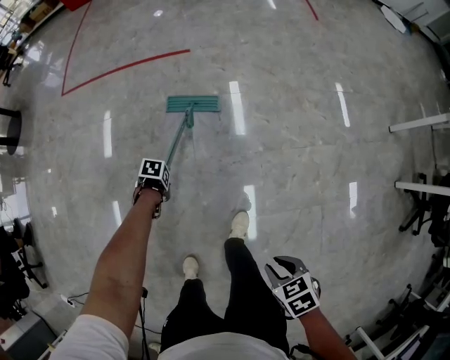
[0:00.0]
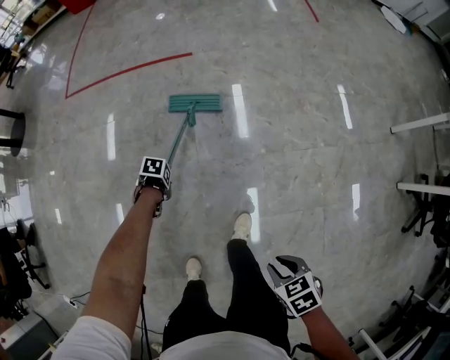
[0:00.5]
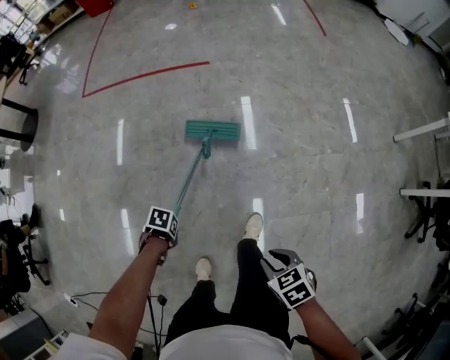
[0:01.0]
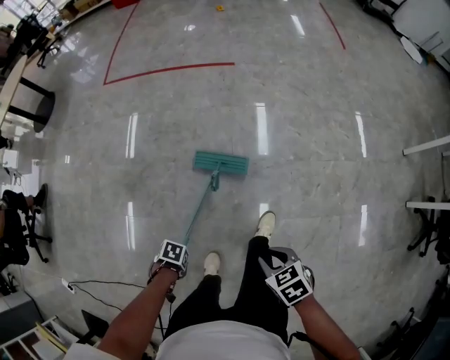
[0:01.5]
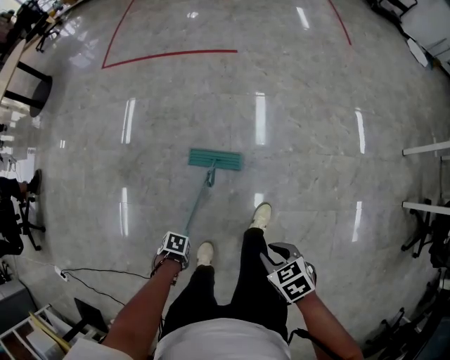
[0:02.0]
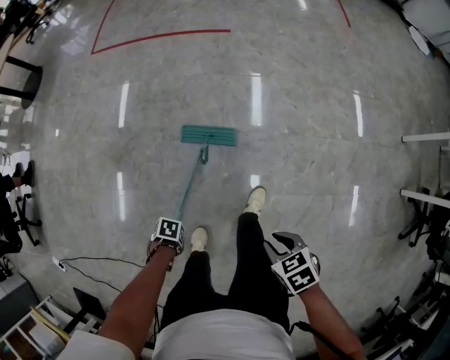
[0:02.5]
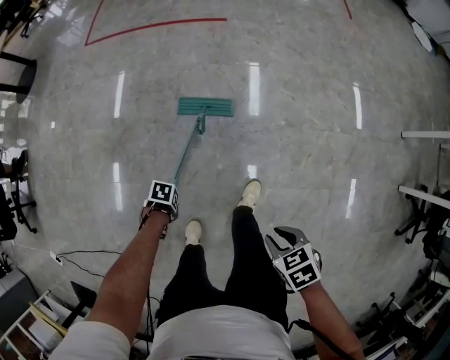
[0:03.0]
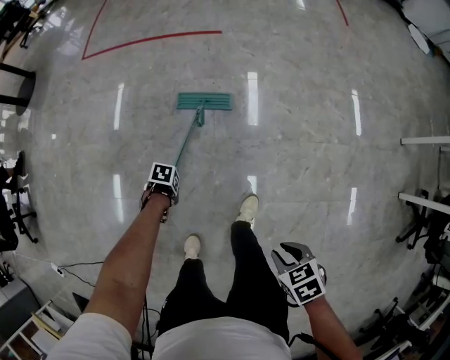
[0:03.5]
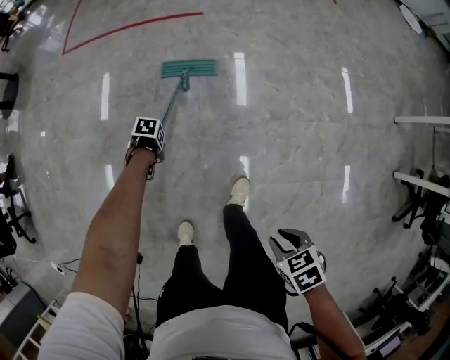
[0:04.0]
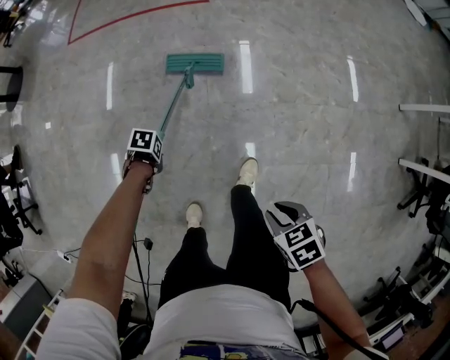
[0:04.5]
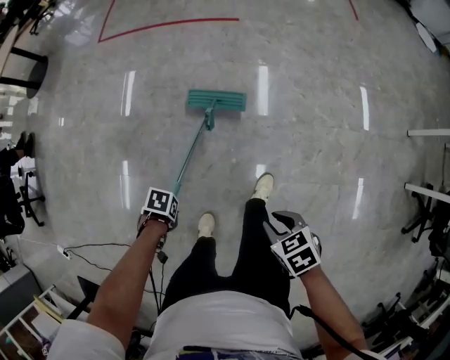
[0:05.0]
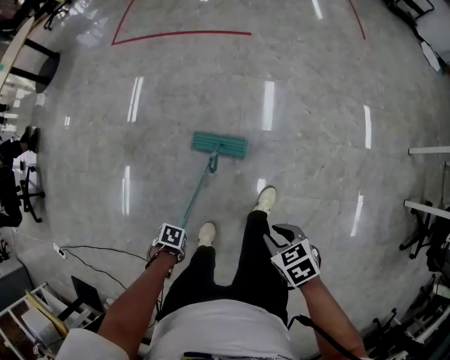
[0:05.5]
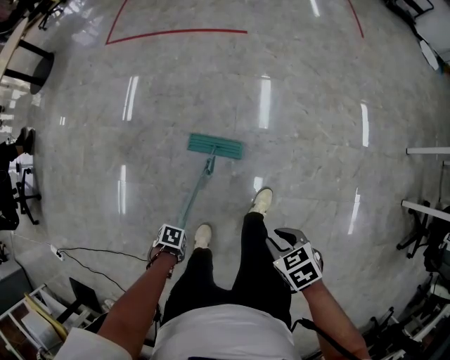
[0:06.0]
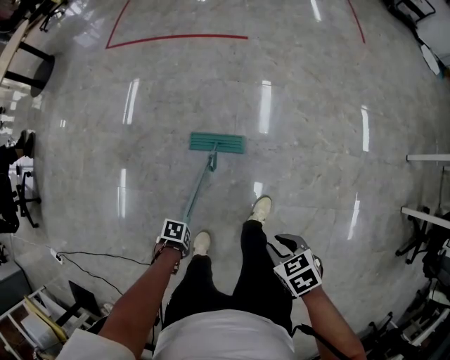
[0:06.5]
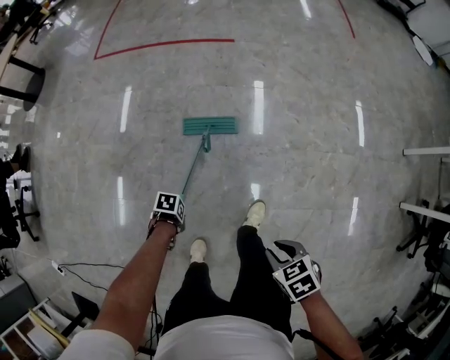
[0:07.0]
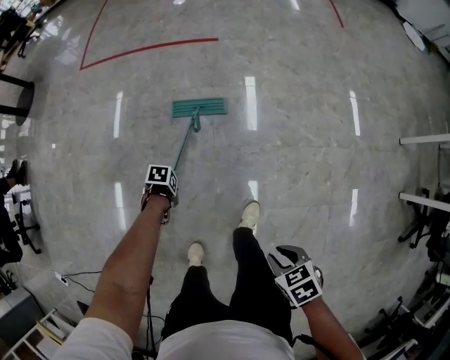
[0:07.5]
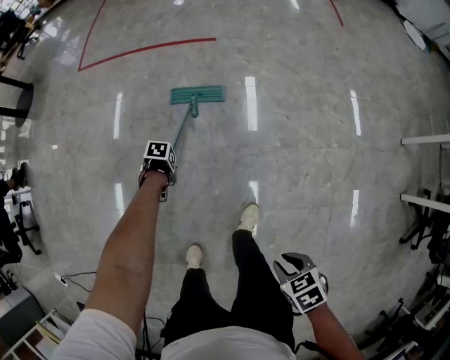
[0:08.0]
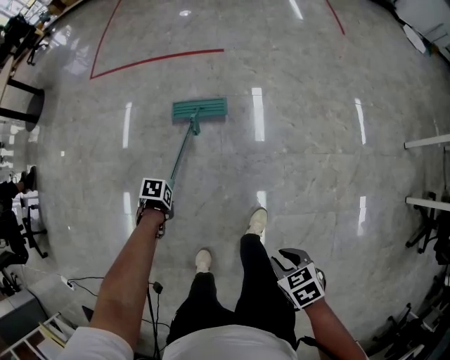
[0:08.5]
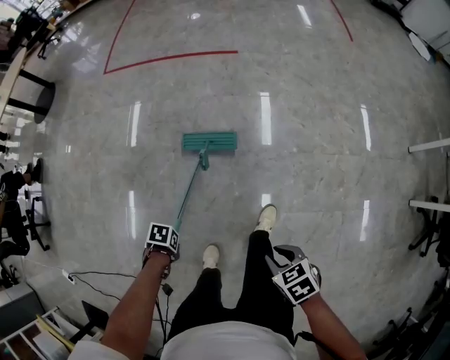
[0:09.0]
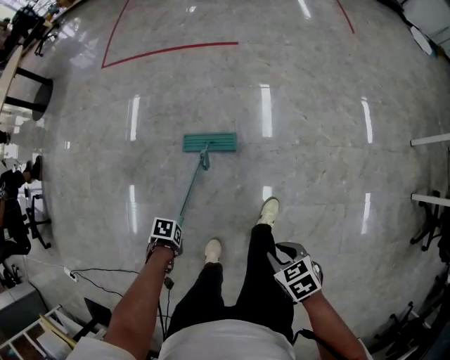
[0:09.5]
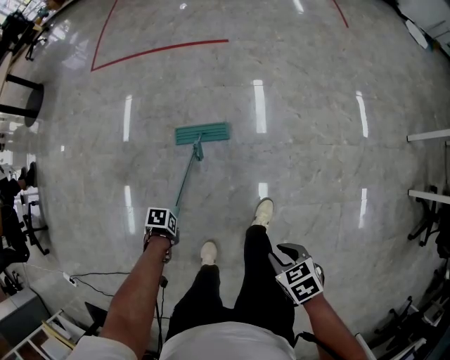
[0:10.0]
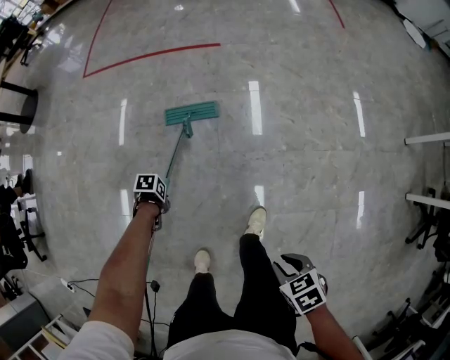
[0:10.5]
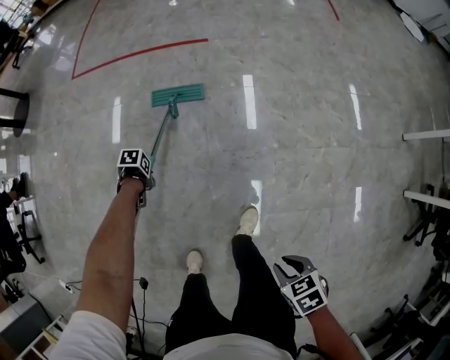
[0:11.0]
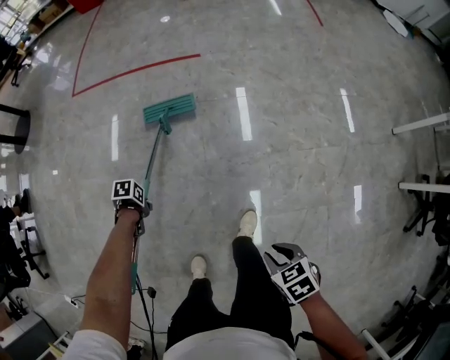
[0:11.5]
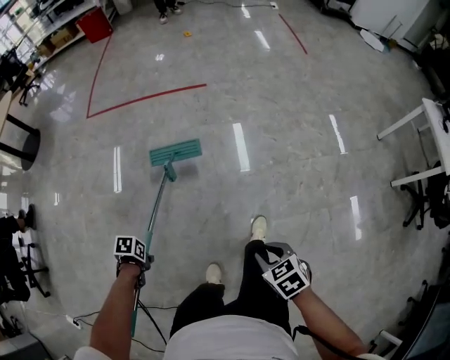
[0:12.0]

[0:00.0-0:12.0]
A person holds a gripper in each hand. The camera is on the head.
0:00.0 to 0:02.0: The right gripper moves some 10 cm.
0:02.0 to 0:04.0: The right gripper changes place by approximately 10 cm.
0:04.0 to 0:06.0: The right gripper ends up some 10 cm from where it was.
0:06.0 to 0:08.0: The right gripper changes place by approximately 10 cm.
0:08.0 to 0:10.0: The right gripper ends up some 10 cm from where it was.
0:10.0 to 0:12.0: The right gripper changes place by roughly 5 cm.

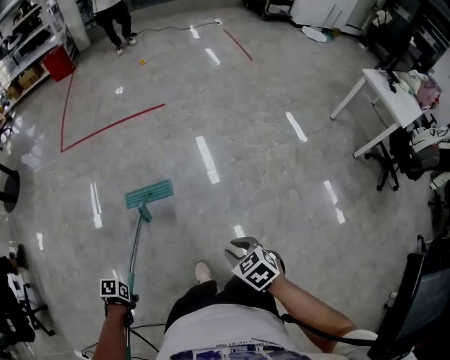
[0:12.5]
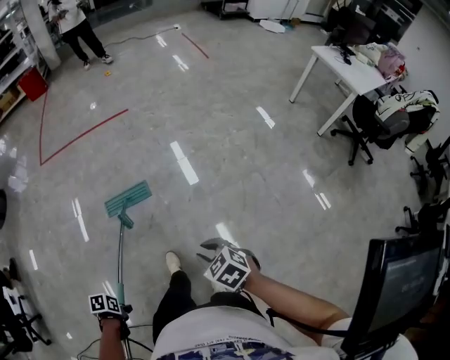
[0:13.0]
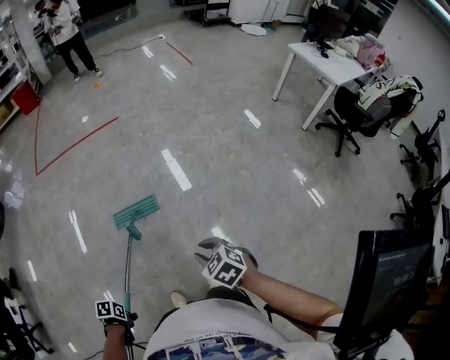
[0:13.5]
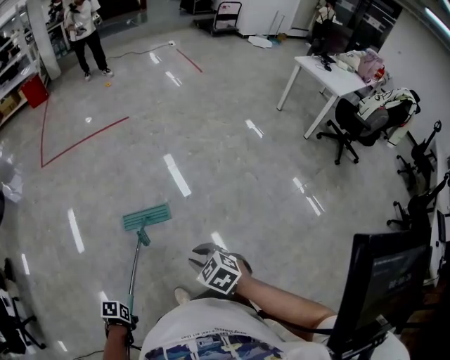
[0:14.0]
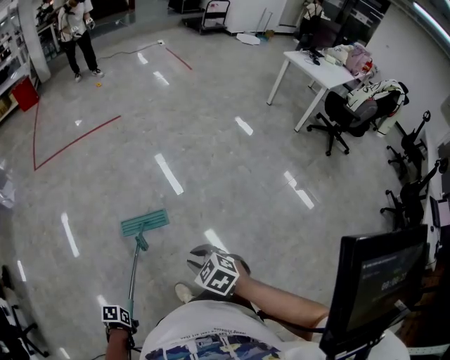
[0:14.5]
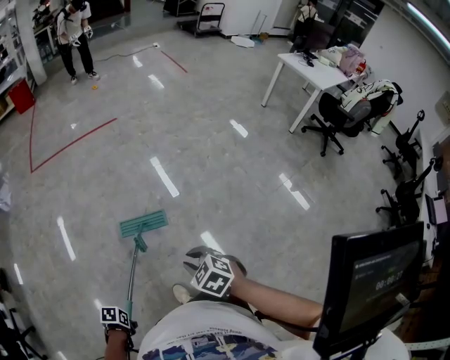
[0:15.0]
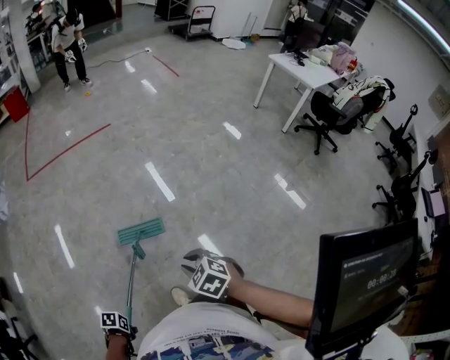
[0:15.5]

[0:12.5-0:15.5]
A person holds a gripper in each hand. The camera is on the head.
0:12.5 to 0:14.0: The right gripper ends up about 20 cm from where it was.
0:14.0 to 0:15.5: The right gripper ends up roughly 5 cm from where it was.

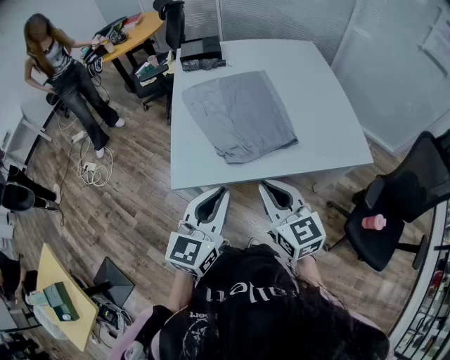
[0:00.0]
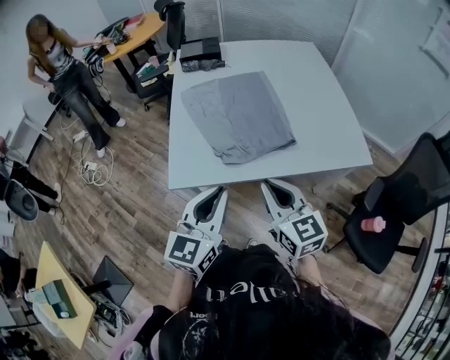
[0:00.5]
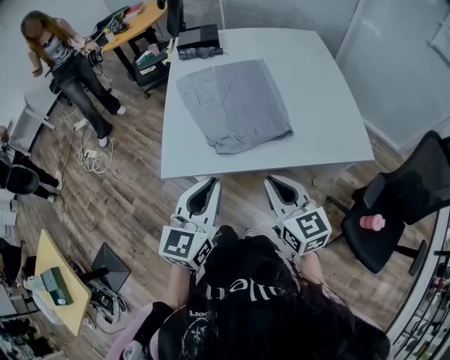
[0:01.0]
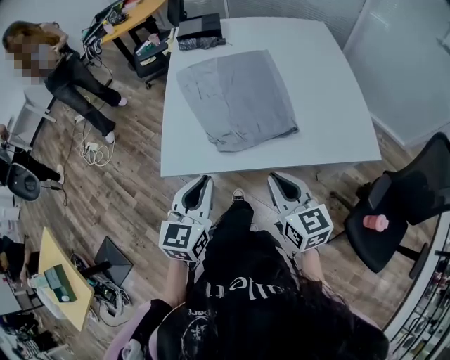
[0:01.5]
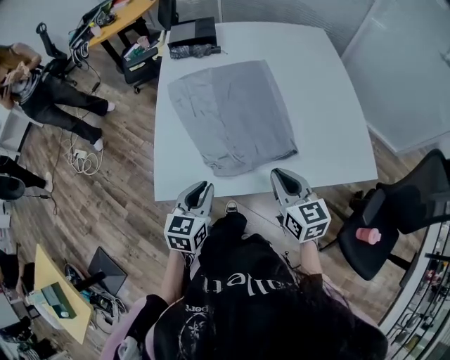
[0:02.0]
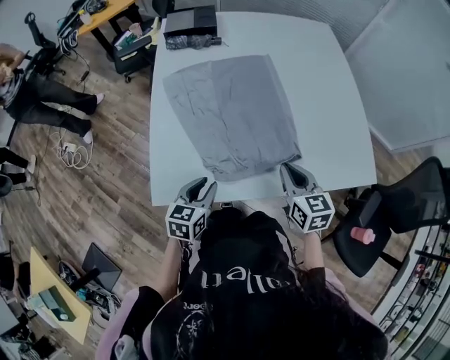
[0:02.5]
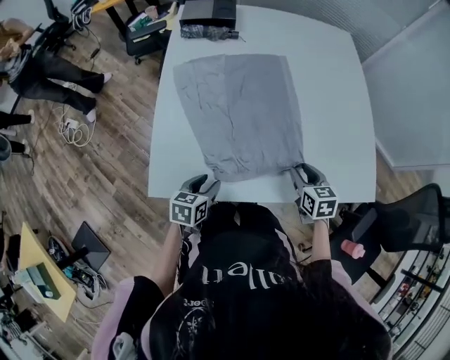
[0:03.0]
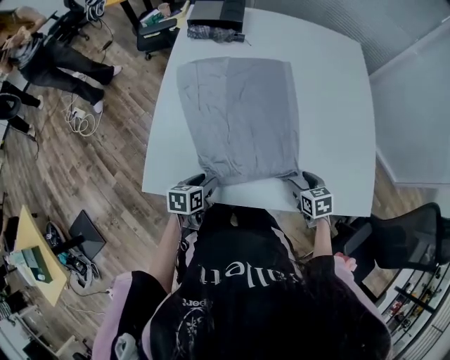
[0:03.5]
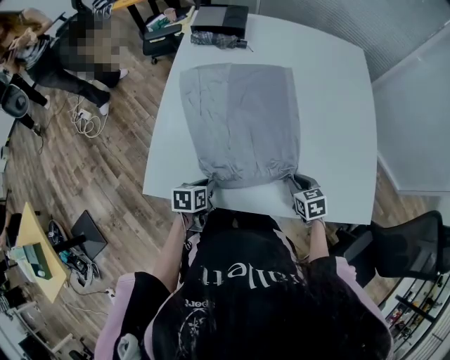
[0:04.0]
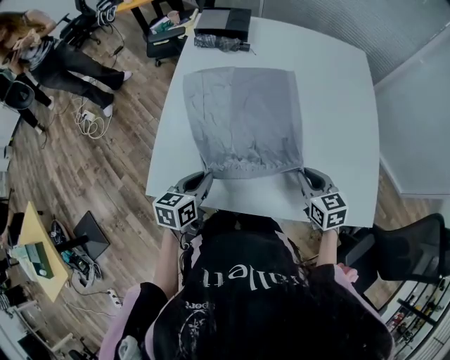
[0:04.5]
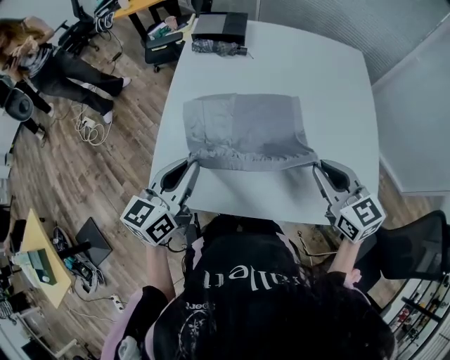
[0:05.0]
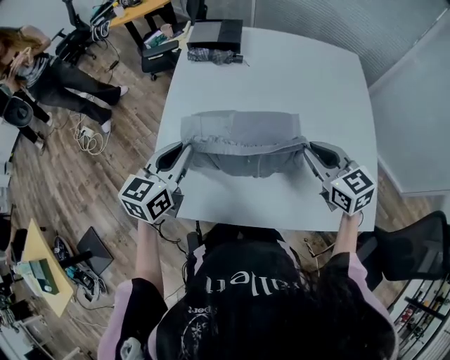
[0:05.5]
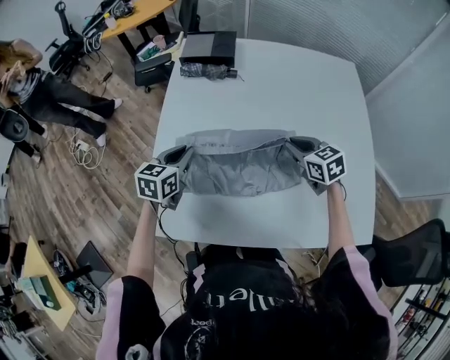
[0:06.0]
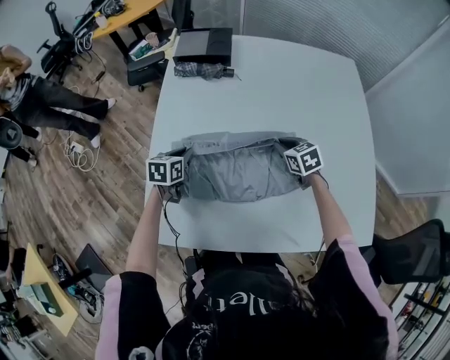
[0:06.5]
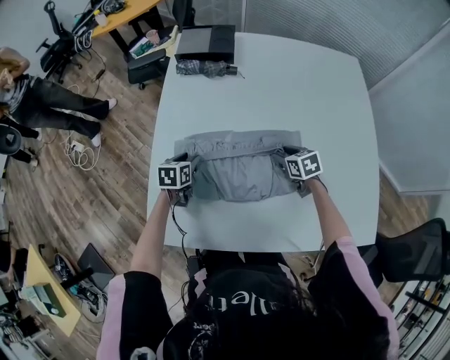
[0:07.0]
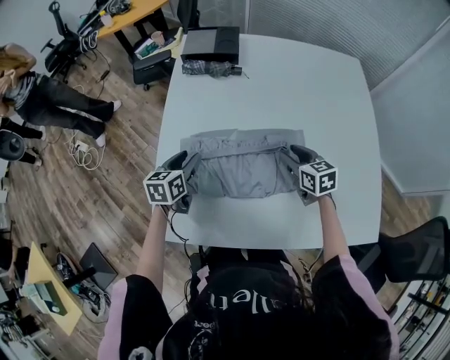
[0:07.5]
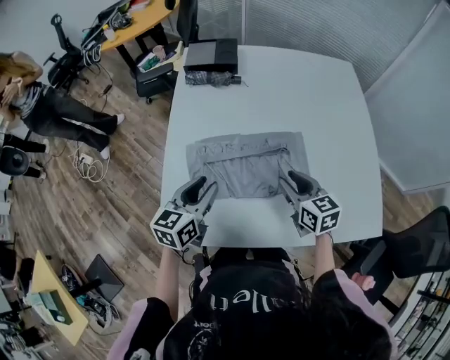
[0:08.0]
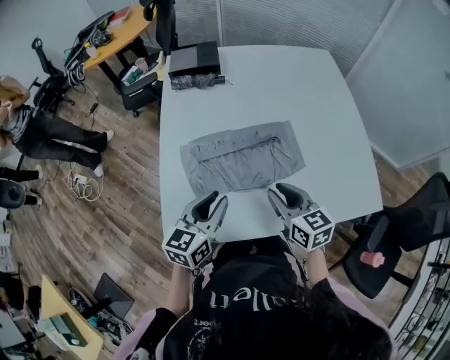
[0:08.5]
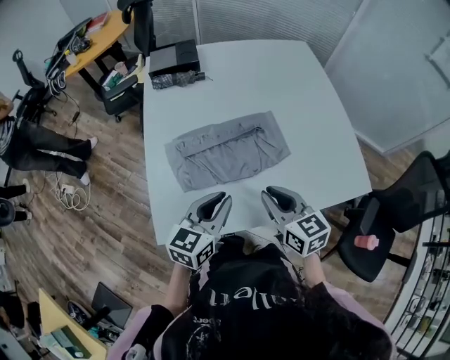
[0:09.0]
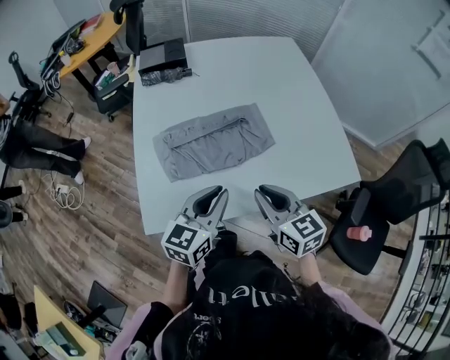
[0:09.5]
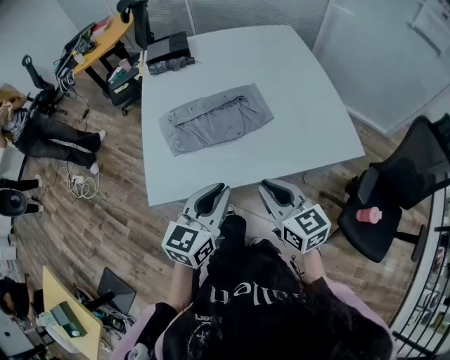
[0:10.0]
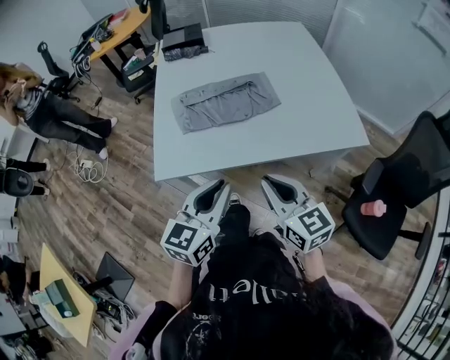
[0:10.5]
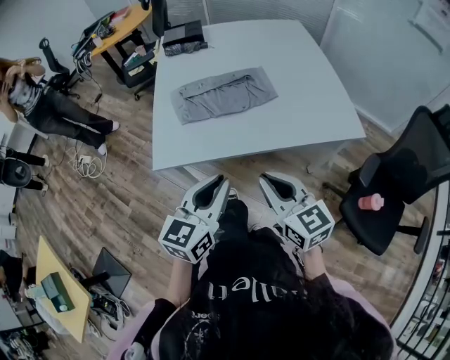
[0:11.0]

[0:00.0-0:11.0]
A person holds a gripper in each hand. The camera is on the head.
0:00.0 to 0:02.0: The right gripper goes some 20 cm forward, to the right and downward, while the left gripper moves downward and forward, about 20 cm, and rotates roughly 20 degrees.
0:02.0 to 0:03.5: The left gripper heads downward, covering some 15 cm, turns by about 30 degrees, and opens its fingers; the right gripper travels downward, to the right and forward by about 25 cm, angles its fingers downward, by roughly 30 degrees, and opens its fingers.
0:03.5 to 0:05.5: The grippers both shift upward and forward by roughly 25 cm. The right gripper swivels some 30 degrees, and closes its fingers, while the left gripper swivels some 40 degrees, and closes up.
0:05.5 to 0:07.5: Both grippers travel together downward and forward, some 20 cm. The right gripper opens, while the left gripper turns by about 20 degrees, and opens its fingers.
0:07.5 to 0:09.0: The left gripper is displaced backward, to the right and upward by some 25 cm, swivels approximately 30 degrees, and closes. The right gripper heads backward and upward, covering roughly 25 cm, and closes up.
0:09.0 to 0:11.0: Both grippers move backward, about 25 cm.

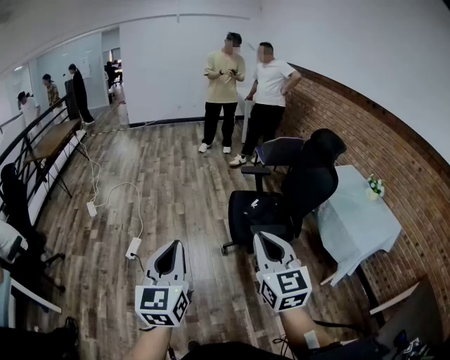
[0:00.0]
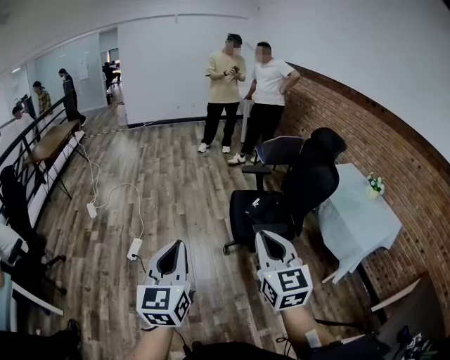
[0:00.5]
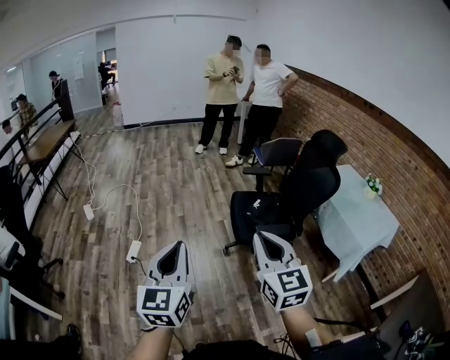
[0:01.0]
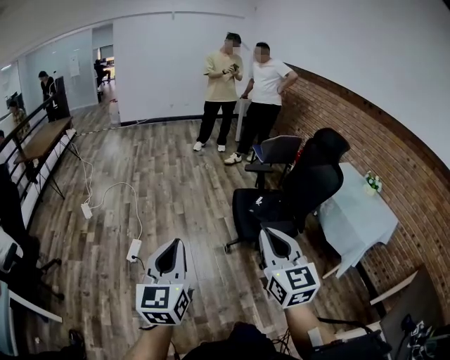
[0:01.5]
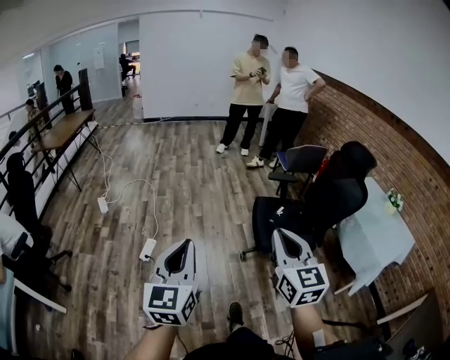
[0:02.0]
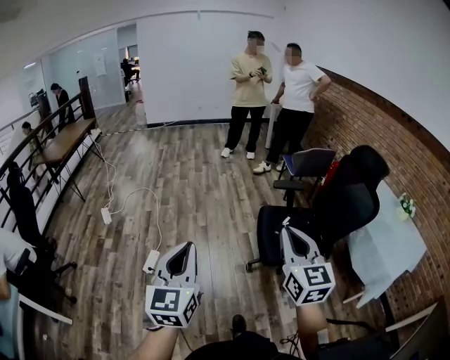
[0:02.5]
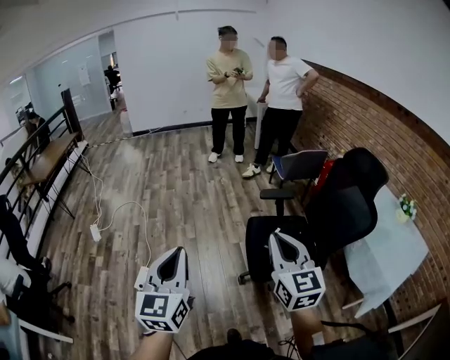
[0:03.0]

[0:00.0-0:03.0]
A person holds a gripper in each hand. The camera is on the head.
0:00.0 to 0:01.5: The two grippers go approximately 10 cm to the left.
0:01.5 to 0:03.0: Both grippers travel together forward, roughly 25 cm.
